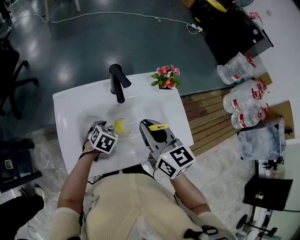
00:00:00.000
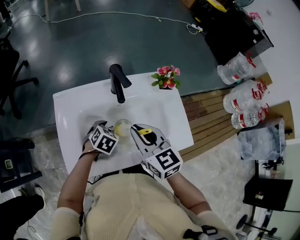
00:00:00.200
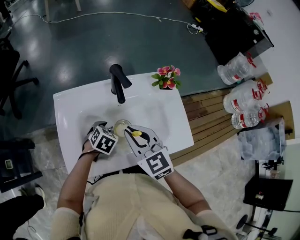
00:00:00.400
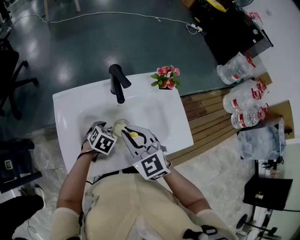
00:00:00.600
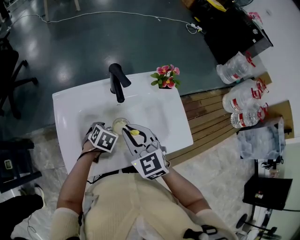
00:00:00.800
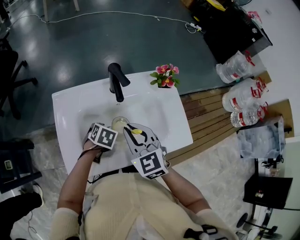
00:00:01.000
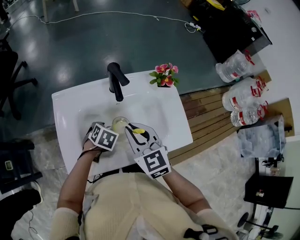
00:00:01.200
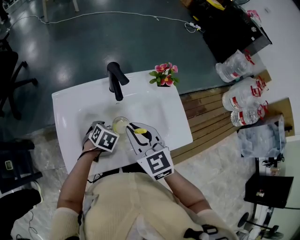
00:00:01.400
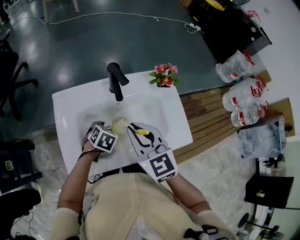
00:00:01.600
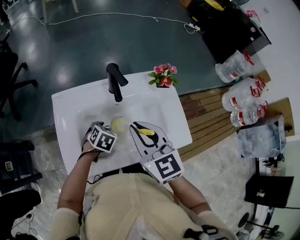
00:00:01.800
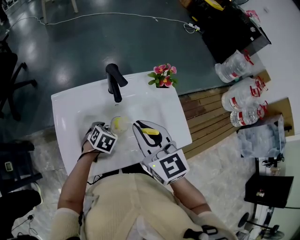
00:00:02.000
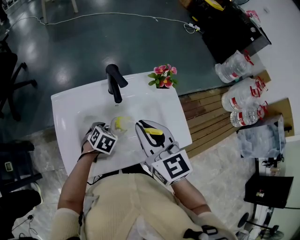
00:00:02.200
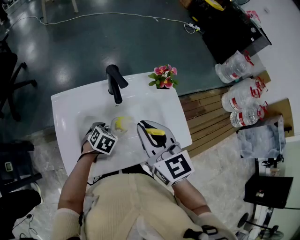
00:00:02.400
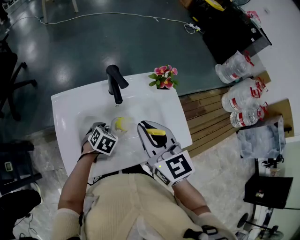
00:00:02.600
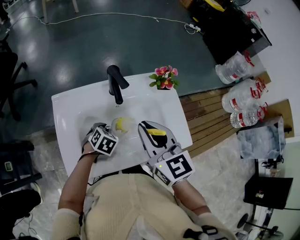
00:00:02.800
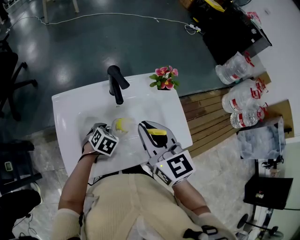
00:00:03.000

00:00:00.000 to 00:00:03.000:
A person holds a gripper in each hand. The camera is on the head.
00:00:00.000 to 00:00:01.600: The right gripper swivels roughly 20 degrees.
00:00:01.600 to 00:00:03.000: The right gripper moves roughly 5 cm.

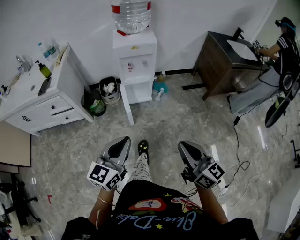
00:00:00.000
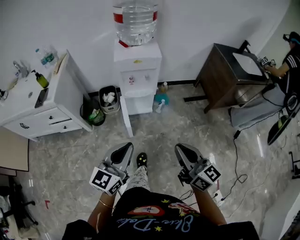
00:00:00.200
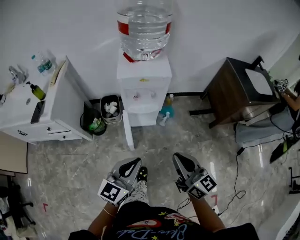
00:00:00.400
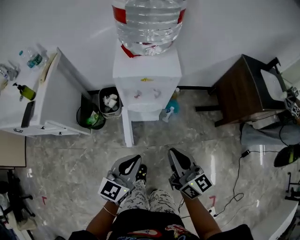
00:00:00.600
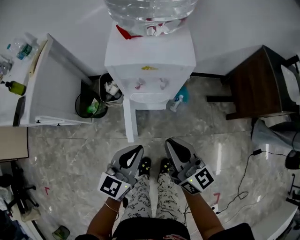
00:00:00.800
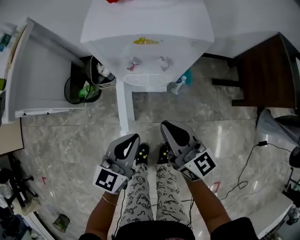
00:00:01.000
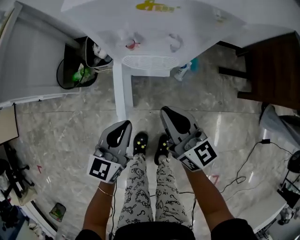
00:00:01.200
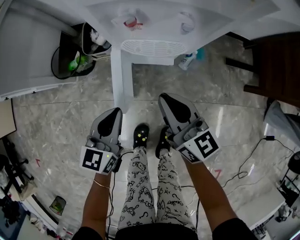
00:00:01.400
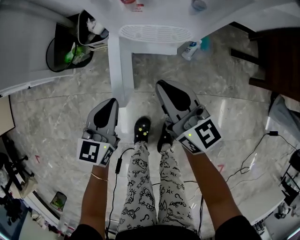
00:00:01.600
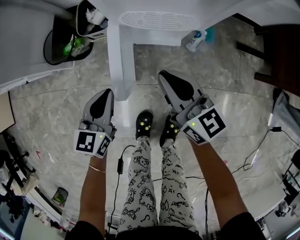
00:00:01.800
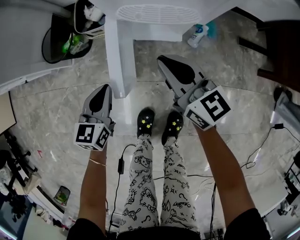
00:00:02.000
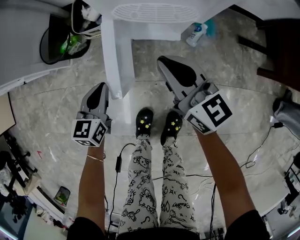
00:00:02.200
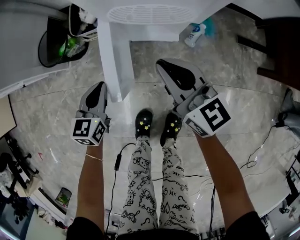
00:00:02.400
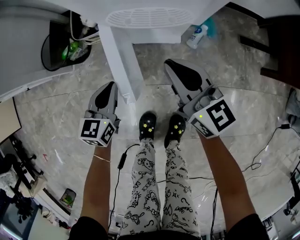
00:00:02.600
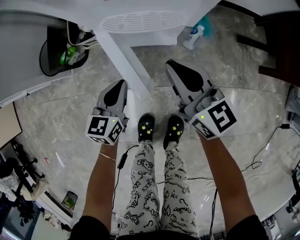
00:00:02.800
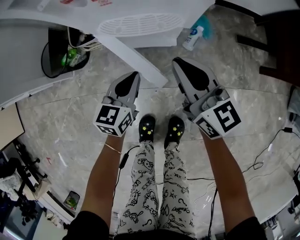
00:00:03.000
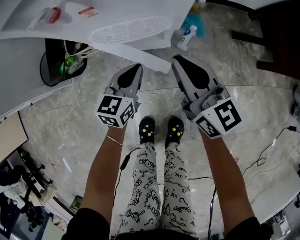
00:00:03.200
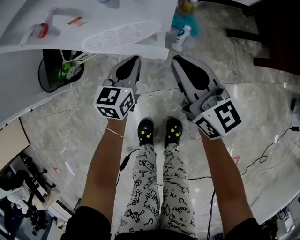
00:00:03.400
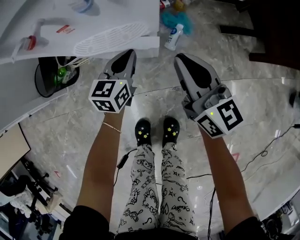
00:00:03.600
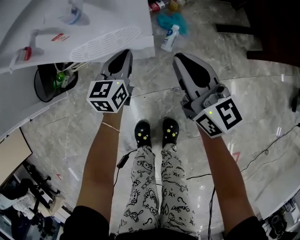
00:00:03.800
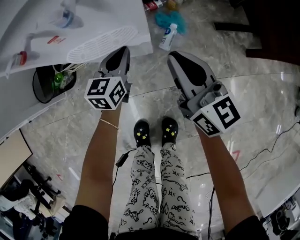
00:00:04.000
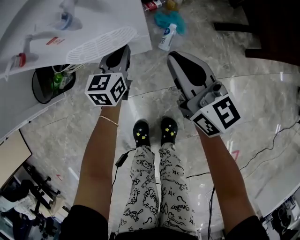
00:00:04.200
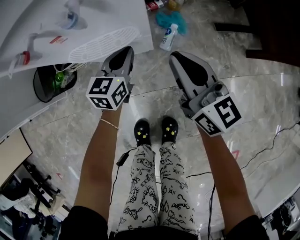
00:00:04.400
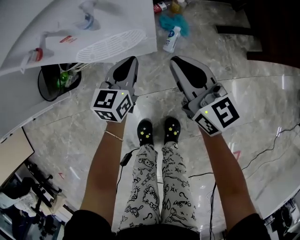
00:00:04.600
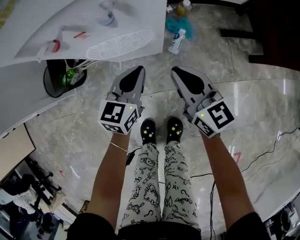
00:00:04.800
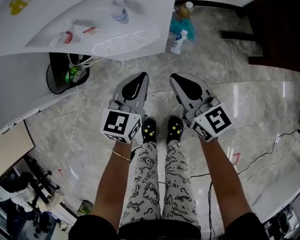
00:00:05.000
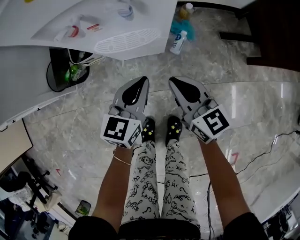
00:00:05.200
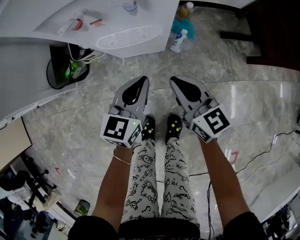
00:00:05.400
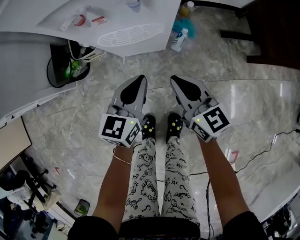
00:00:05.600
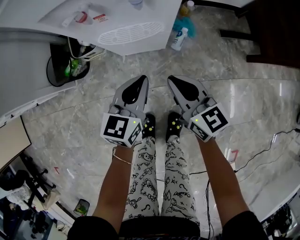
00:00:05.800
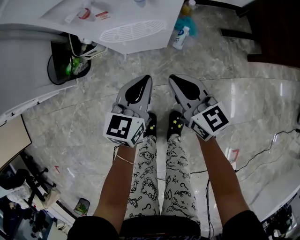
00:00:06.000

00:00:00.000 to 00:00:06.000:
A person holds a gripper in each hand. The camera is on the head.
00:00:00.000 to 00:00:01.600: The right gripper heads forward and downward, covering roughly 60 cm; the left gripper travels downward and forward by approximately 60 cm, and rotates roughly 30 degrees.
00:00:01.600 to 00:00:03.000: The left gripper shifts roughly 15 cm to the right, downward and forward. Meanwhile the right gripper shifts roughly 10 cm to the right.
00:00:03.000 to 00:00:04.400: The left gripper travels forward and to the right by about 15 cm. Meanwhile the right gripper travels to the right by some 10 cm.
00:00:04.400 to 00:00:06.000: The left gripper goes roughly 20 cm backward and upward. The right gripper heads backward and to the left, covering approximately 15 cm.

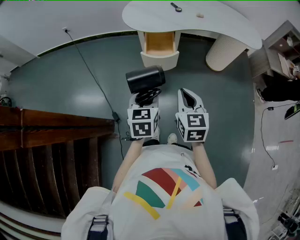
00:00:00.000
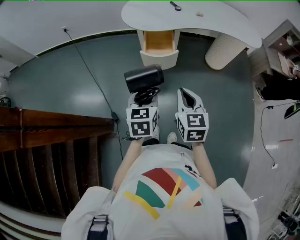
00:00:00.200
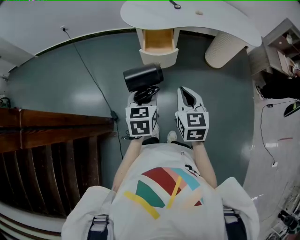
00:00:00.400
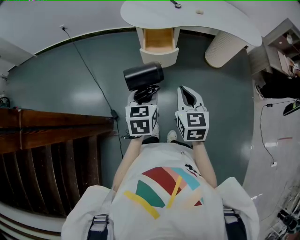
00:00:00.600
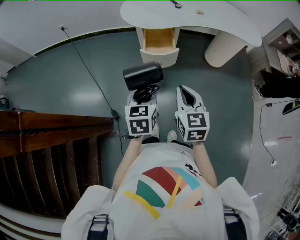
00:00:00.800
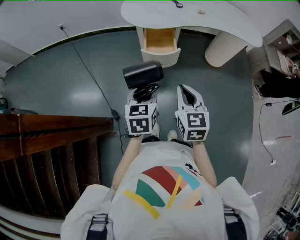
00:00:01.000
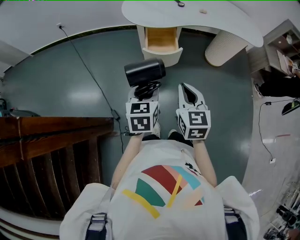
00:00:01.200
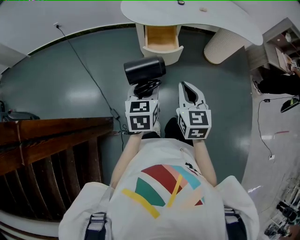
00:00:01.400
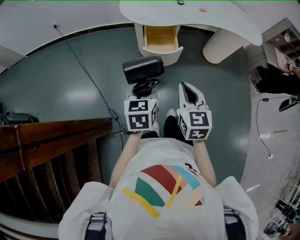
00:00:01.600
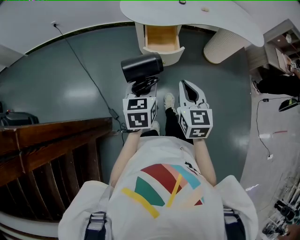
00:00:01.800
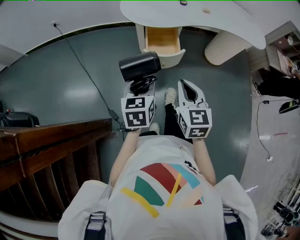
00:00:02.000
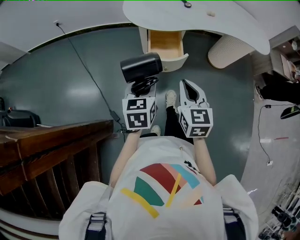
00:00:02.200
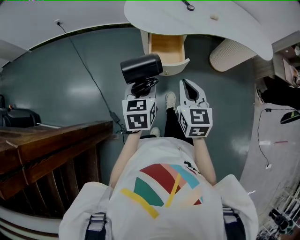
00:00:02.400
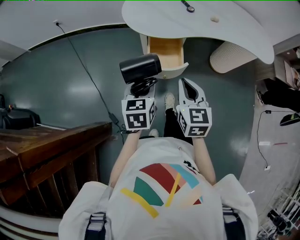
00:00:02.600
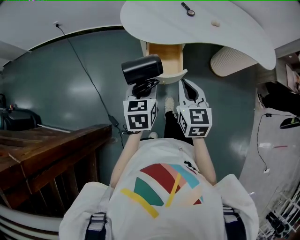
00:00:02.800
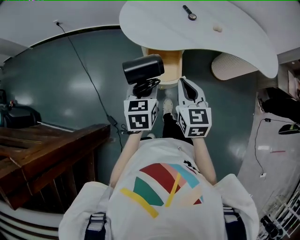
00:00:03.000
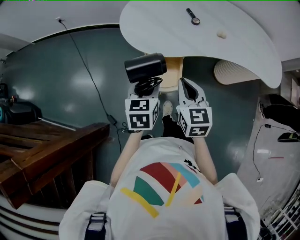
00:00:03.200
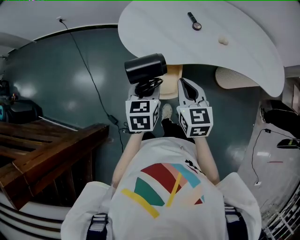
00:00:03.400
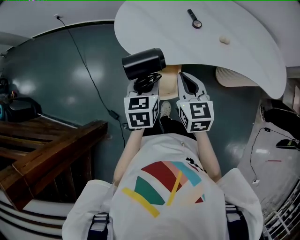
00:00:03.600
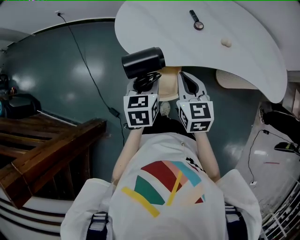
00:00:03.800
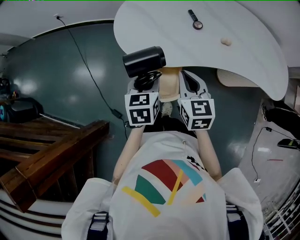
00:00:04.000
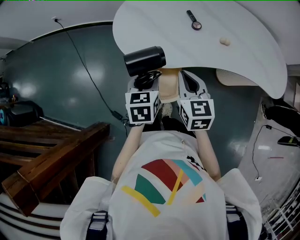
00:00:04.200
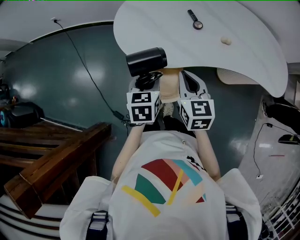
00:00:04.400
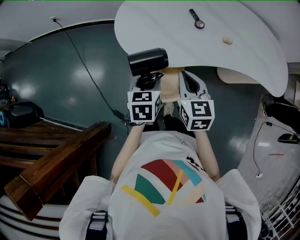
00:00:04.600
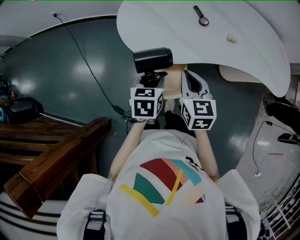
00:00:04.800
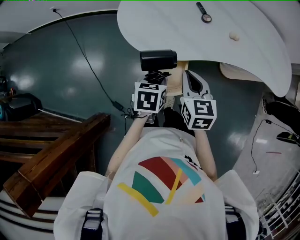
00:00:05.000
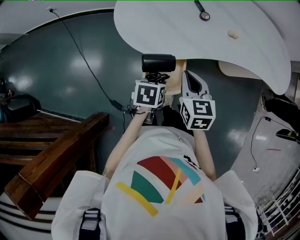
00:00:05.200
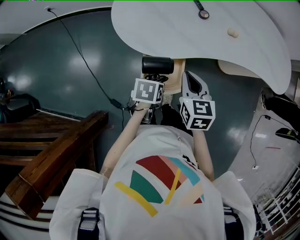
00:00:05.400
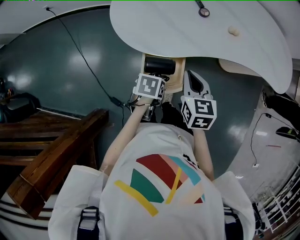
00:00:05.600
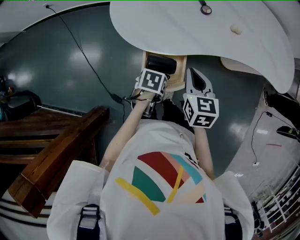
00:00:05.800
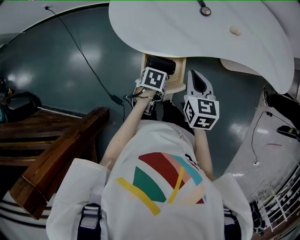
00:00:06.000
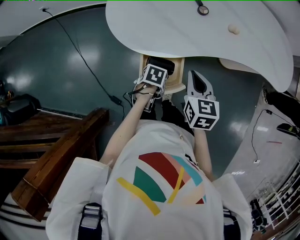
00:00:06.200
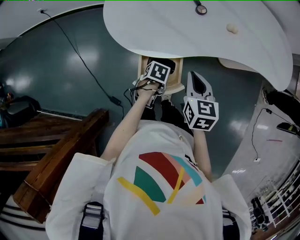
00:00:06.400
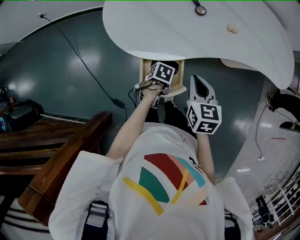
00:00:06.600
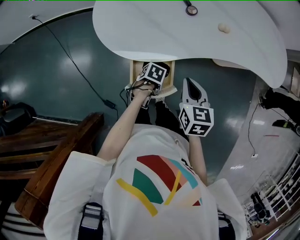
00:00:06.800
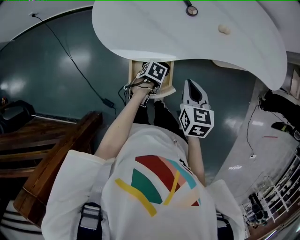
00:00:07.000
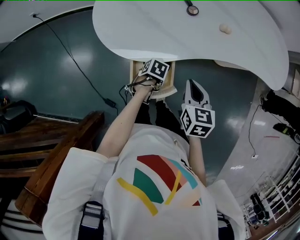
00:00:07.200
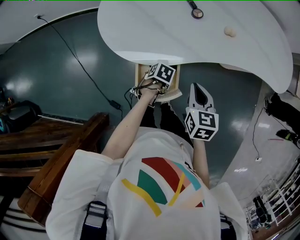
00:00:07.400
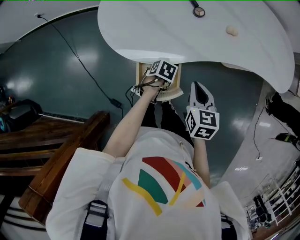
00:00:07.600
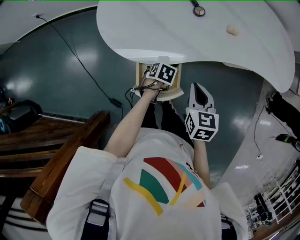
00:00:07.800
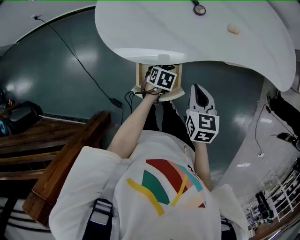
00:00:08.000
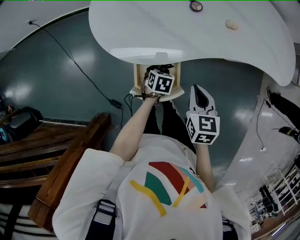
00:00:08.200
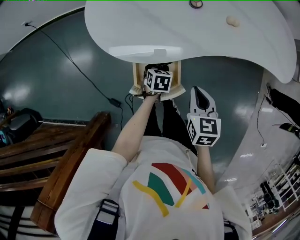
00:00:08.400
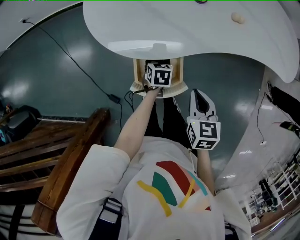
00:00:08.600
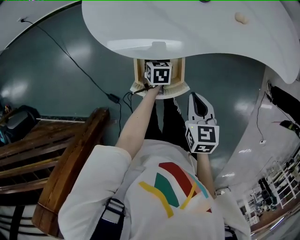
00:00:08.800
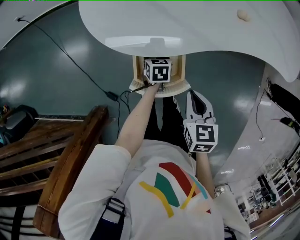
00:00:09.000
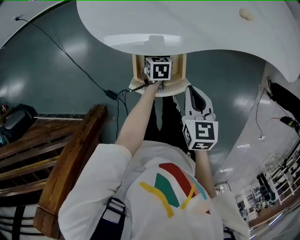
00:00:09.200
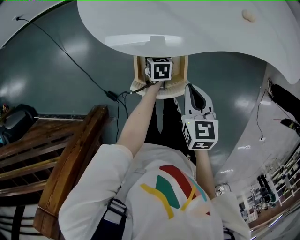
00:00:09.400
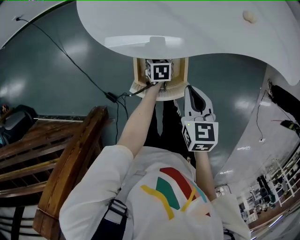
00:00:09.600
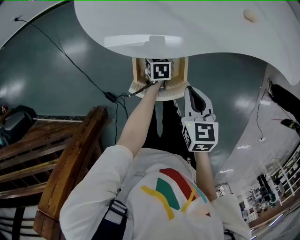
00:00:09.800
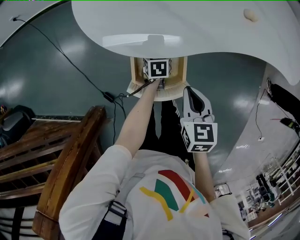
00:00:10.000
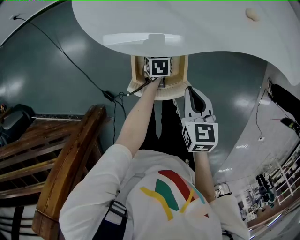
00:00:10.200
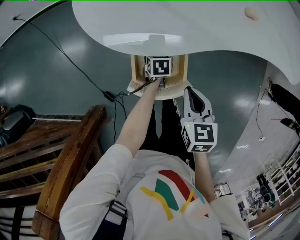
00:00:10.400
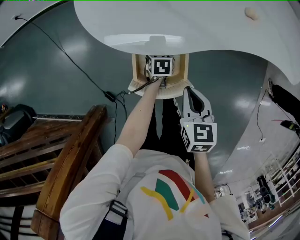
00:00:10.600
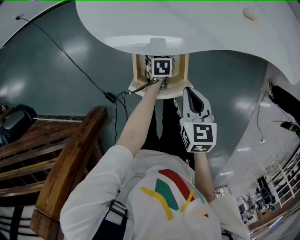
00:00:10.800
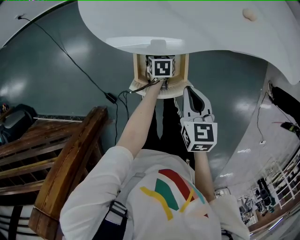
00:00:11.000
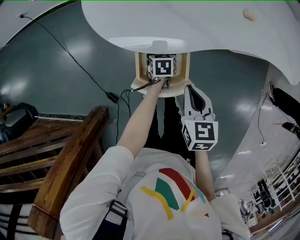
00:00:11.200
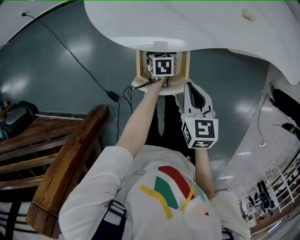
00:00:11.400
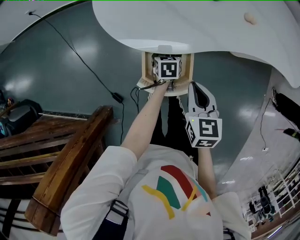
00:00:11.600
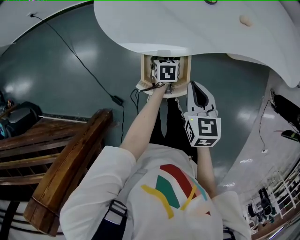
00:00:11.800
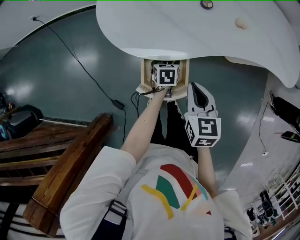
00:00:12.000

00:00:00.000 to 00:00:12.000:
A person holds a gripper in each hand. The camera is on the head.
00:00:00.000 to 00:00:01.600: The left gripper moves to the left and forward, some 5 cm. Meanwhile the right gripper shifts by about 5 cm.
00:00:01.600 to 00:00:03.000: Both grippers move forward, about 20 cm.
00:00:03.000 to 00:00:04.400: Both grippers move forward, roughly 15 cm.
00:00:04.400 to 00:00:06.000: The left gripper is displaced downward by approximately 15 cm, and tilts its fingers about 30 degrees downward; the right gripper heads downward, covering some 5 cm.
00:00:06.000 to 00:00:07.600: The left gripper ends up some 10 cm from where it was.
00:00:07.600 to 00:00:09.000: The right gripper shifts by roughly 10 cm, while the left gripper ends up some 10 cm from where it was, and changes its angle by about 40 degrees.
00:00:09.000 to 00:00:10.400: The left gripper moves some 5 cm.
00:00:10.400 to 00:00:12.000: Both grippers move upward, about 5 cm. The left gripper opens.

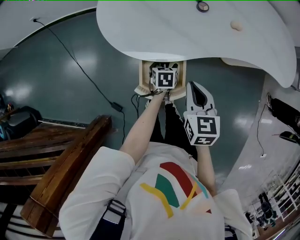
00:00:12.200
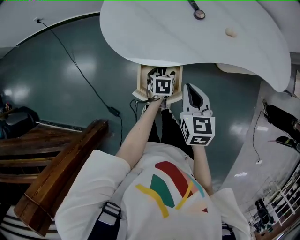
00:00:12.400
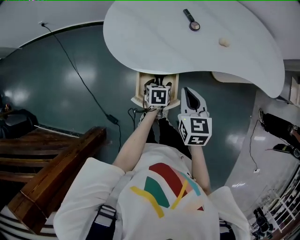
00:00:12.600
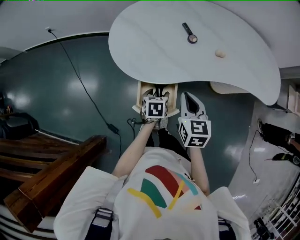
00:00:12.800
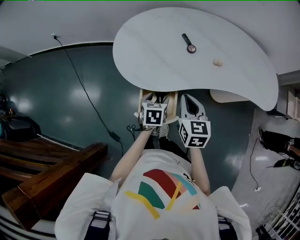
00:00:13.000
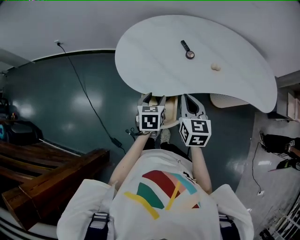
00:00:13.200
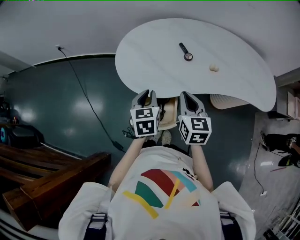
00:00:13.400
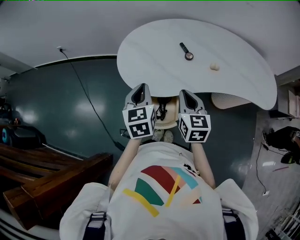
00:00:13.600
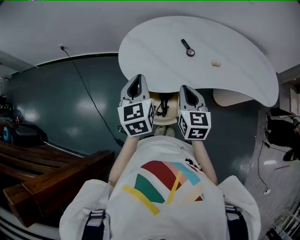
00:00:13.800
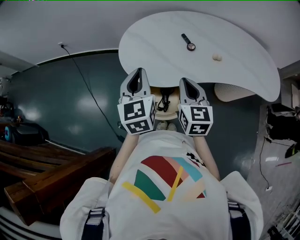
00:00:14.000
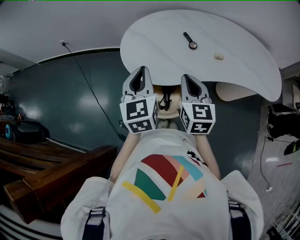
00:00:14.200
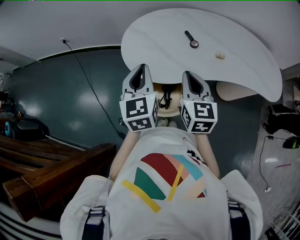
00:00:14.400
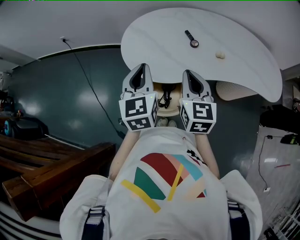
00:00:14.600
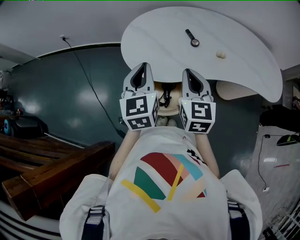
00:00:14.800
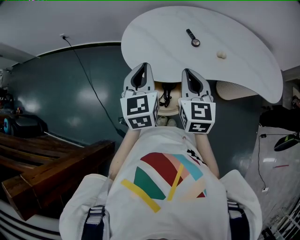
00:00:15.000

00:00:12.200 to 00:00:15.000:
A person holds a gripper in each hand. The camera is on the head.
00:00:12.200 to 00:00:13.600: The left gripper shifts some 35 cm upward, tips its fingers upward by about 30 degrees, and closes its fingers. Meanwhile the right gripper is displaced upward and forward by approximately 10 cm.
00:00:13.600 to 00:00:15.000: Both grippers travel together upward, roughly 5 cm.
